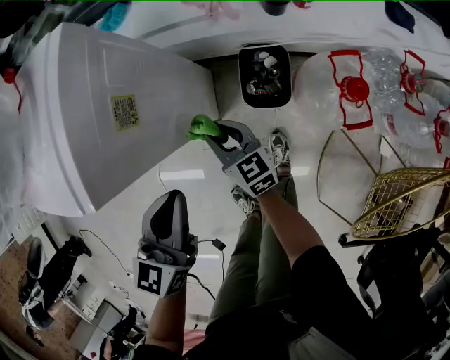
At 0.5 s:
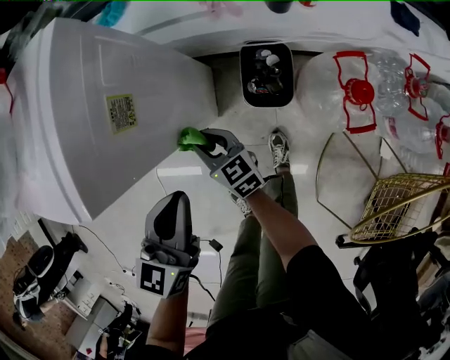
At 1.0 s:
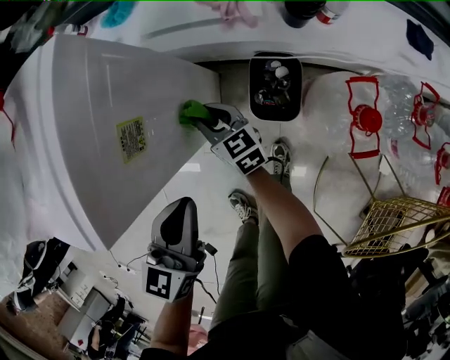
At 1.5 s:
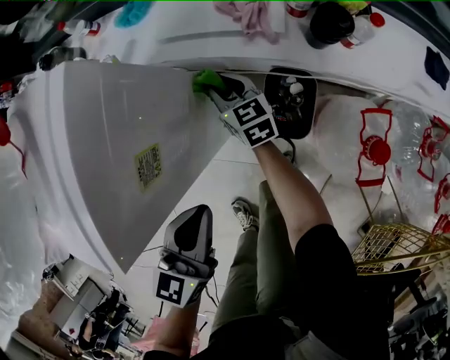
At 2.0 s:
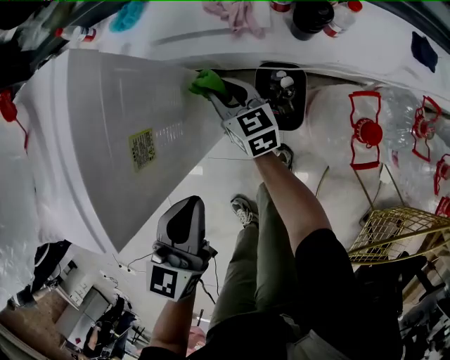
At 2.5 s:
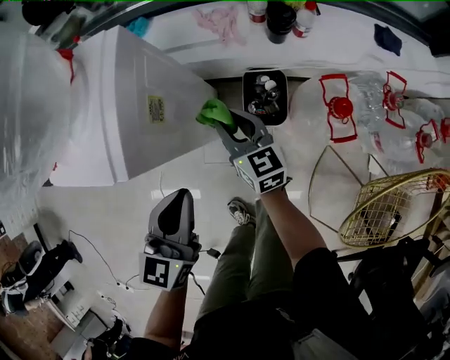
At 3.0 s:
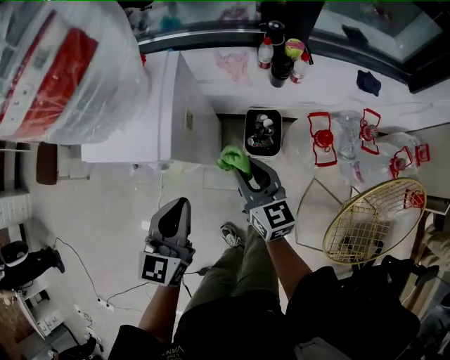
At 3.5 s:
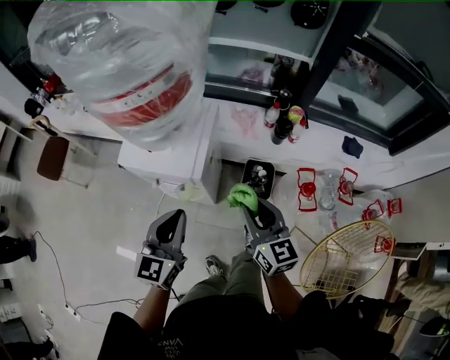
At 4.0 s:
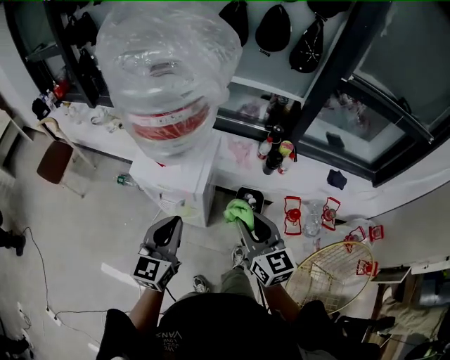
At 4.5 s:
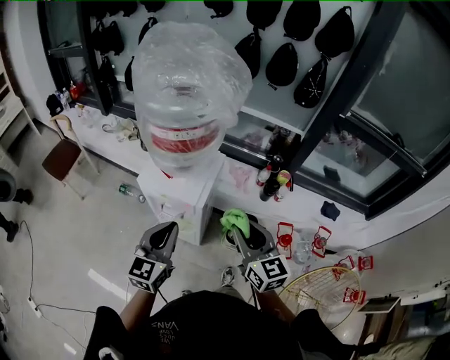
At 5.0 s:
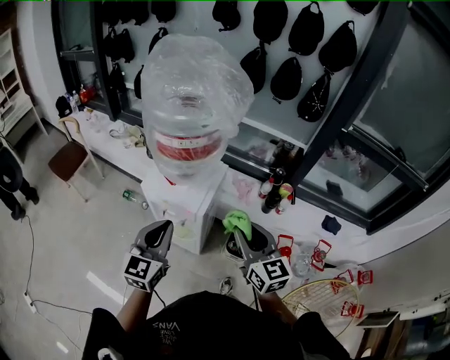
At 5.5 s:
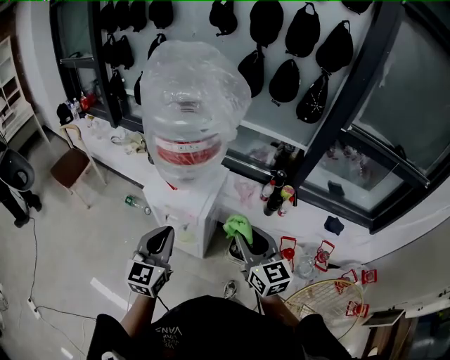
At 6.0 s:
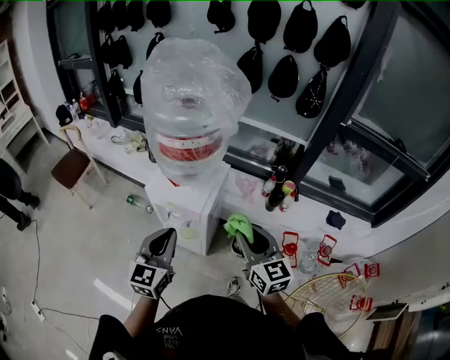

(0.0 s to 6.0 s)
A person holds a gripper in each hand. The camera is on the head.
0.0 s - 2.0 s: The left gripper is displaced forward by about 5 cm. Meanwhile the right gripper heads forward, covering about 15 cm.
2.0 s - 4.0 s: The left gripper travels upward, to the left and backward by some 30 cm, and rotates approximately 20 degrees; the right gripper is displaced upward and backward by about 50 cm.
4.0 s - 6.0 s: The right gripper is displaced upward by about 5 cm; the left gripper changes place by approximately 5 cm.

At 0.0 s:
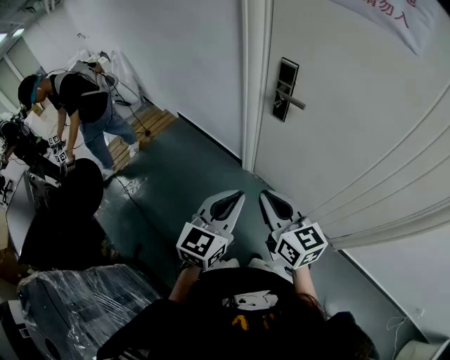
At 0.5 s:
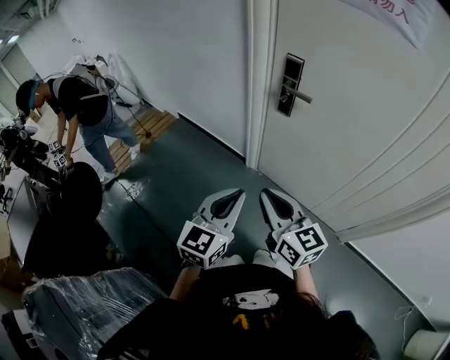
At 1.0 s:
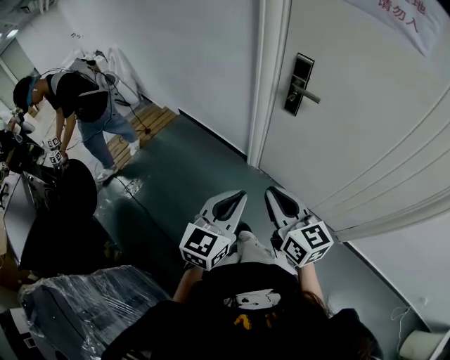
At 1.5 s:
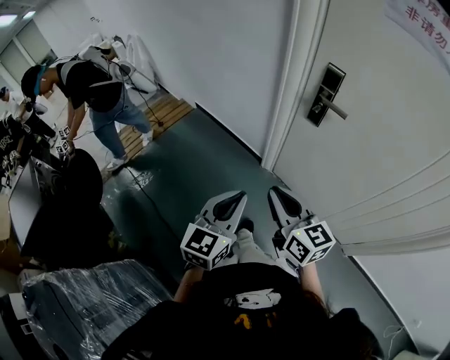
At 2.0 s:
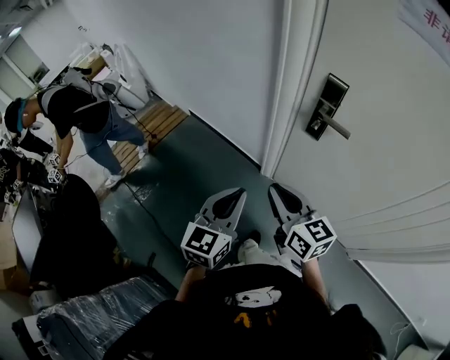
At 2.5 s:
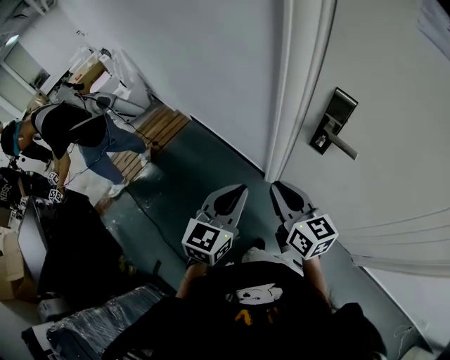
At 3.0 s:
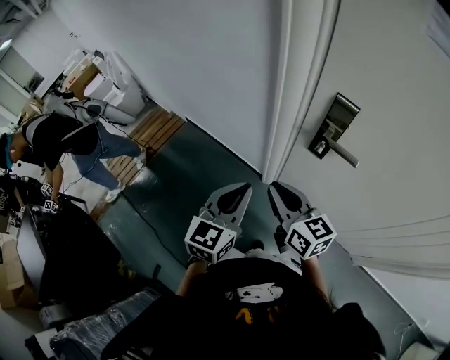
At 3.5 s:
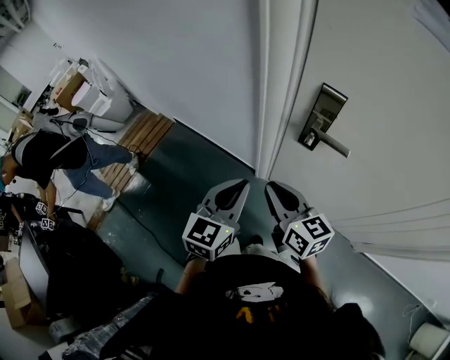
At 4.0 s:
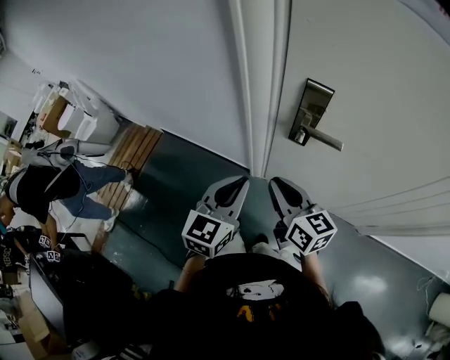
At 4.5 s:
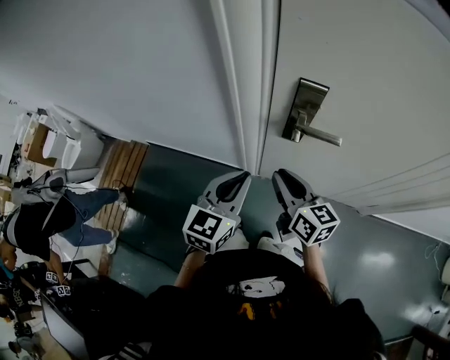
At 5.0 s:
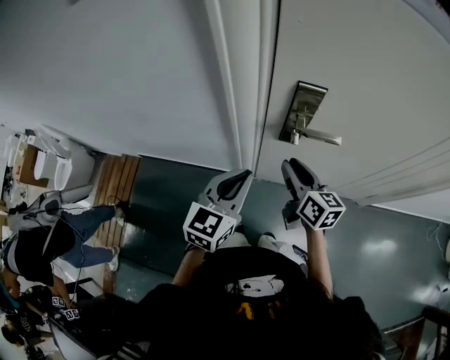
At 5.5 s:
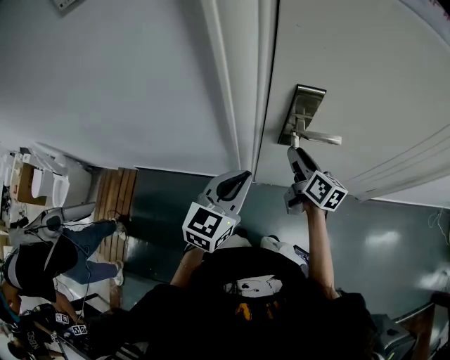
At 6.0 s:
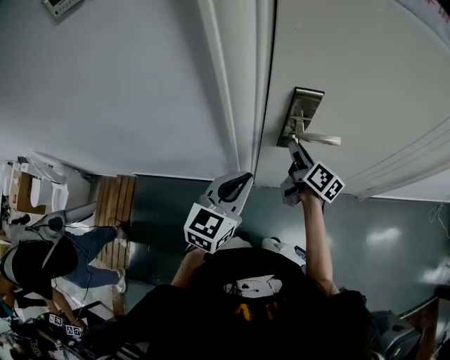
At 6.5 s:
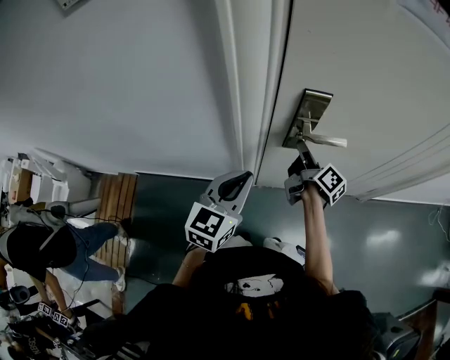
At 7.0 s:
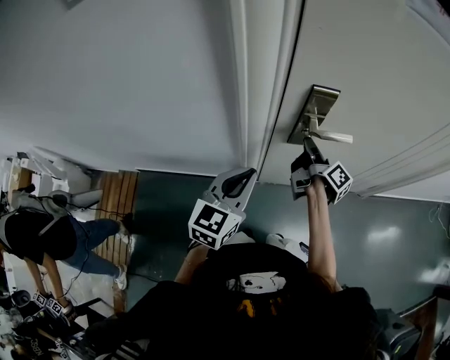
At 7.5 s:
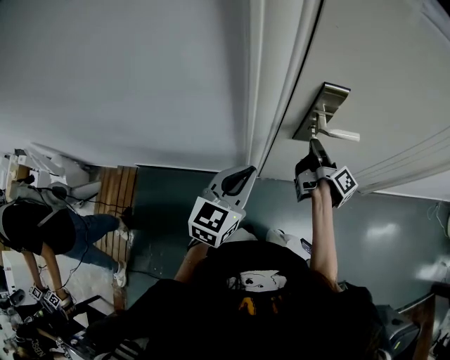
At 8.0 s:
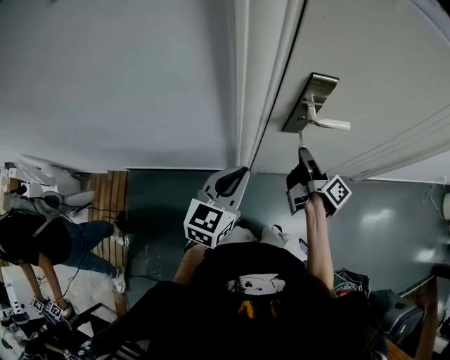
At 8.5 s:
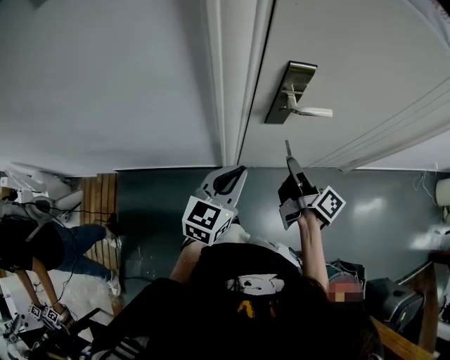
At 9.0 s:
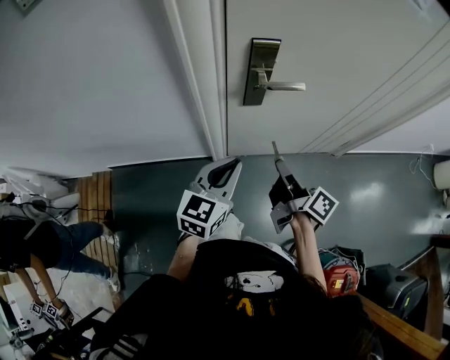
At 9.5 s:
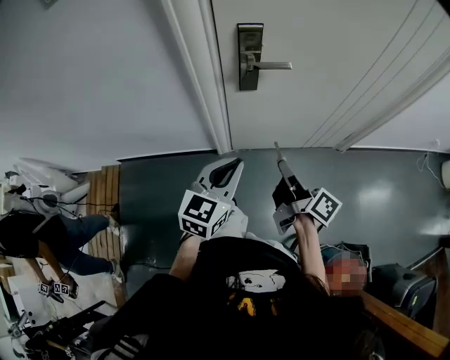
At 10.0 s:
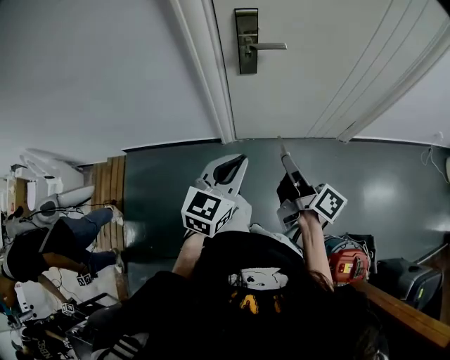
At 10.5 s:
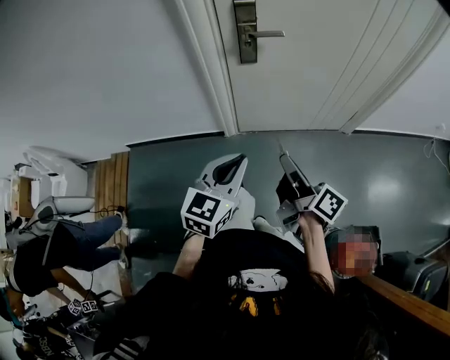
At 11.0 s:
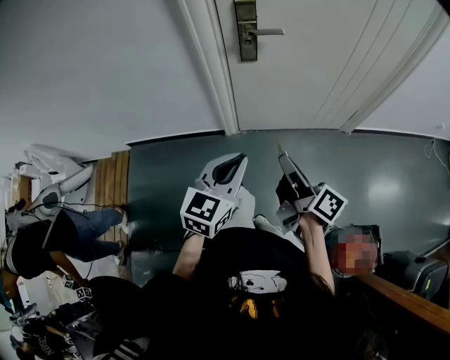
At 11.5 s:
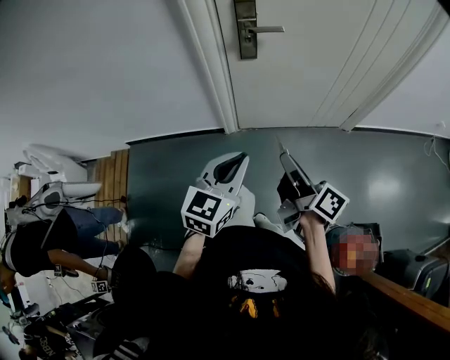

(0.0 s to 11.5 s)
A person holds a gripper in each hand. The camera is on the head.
0.0 s - 2.0 s: Both grippers travel together forward and to the left, some 20 cm.
2.0 s - 4.0 s: The two grippers go approximately 15 cm forward.
4.0 s - 6.0 s: The right gripper shifts by about 20 cm, changes its angle by roughly 50 degrees, and opens, while the left gripper ends up roughly 10 cm from where it was, and turns by roughly 30 degrees.
6.0 s - 7.5 s: The left gripper is displaced to the left by some 5 cm; the right gripper rotates roughly 40 degrees.
7.5 s - 9.5 s: The left gripper goes roughly 20 cm backward and to the right; the right gripper shifts about 30 cm backward.
9.5 s - 11.5 s: The grippers both shift backward by approximately 15 cm.

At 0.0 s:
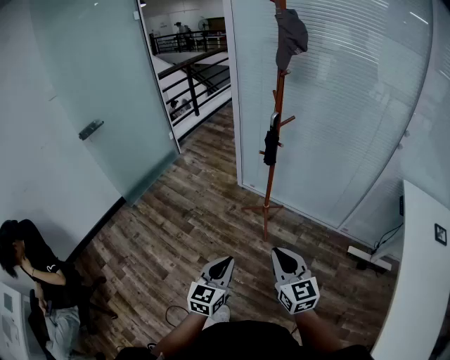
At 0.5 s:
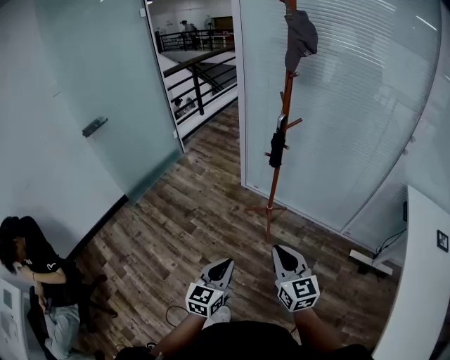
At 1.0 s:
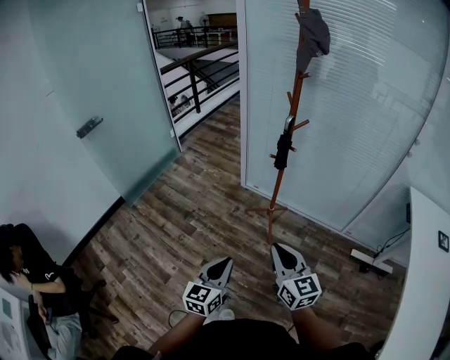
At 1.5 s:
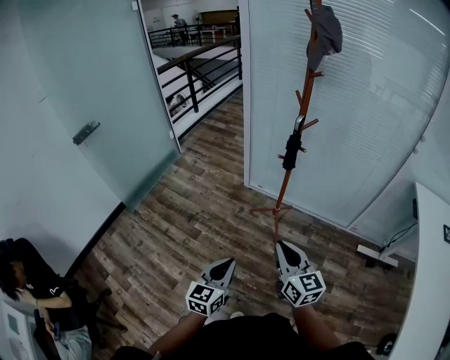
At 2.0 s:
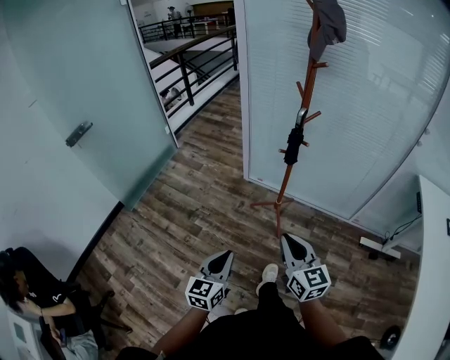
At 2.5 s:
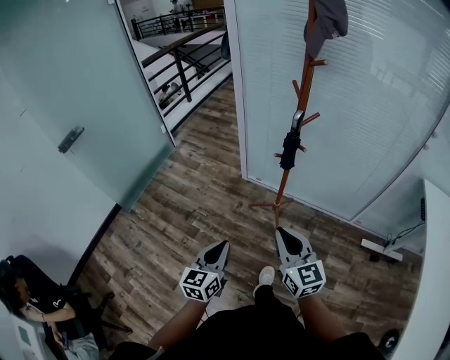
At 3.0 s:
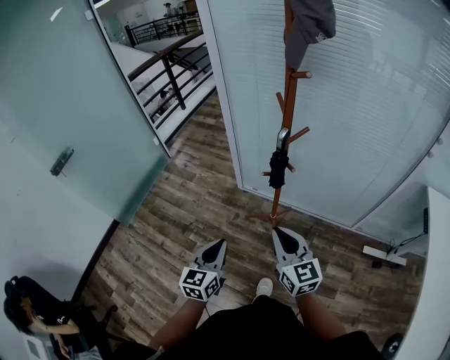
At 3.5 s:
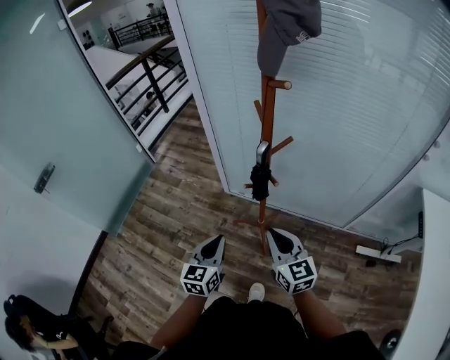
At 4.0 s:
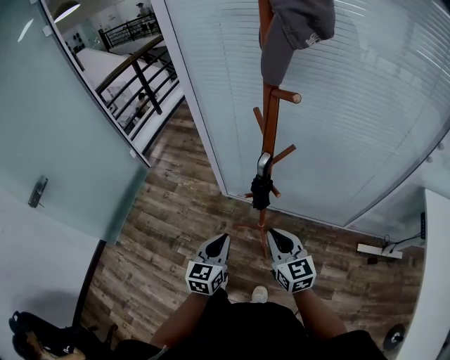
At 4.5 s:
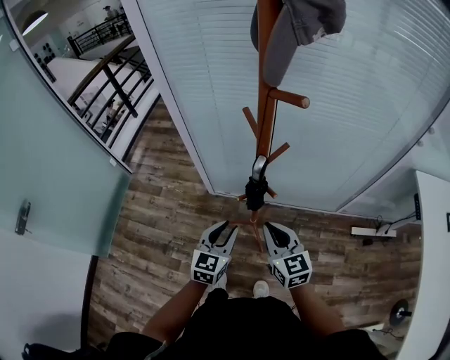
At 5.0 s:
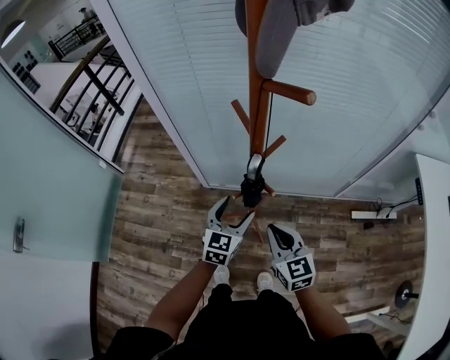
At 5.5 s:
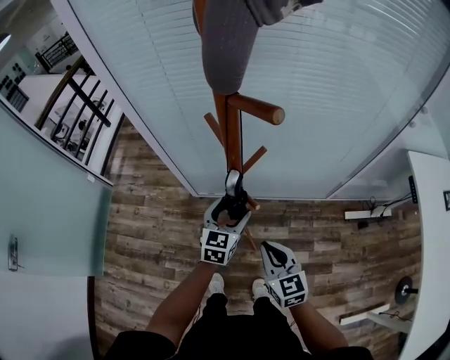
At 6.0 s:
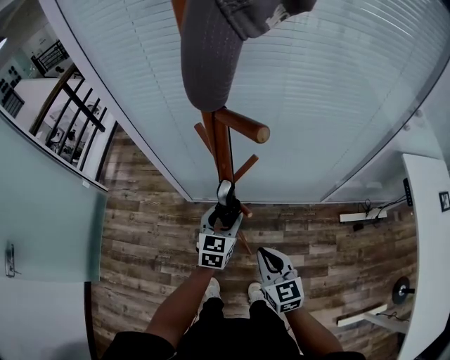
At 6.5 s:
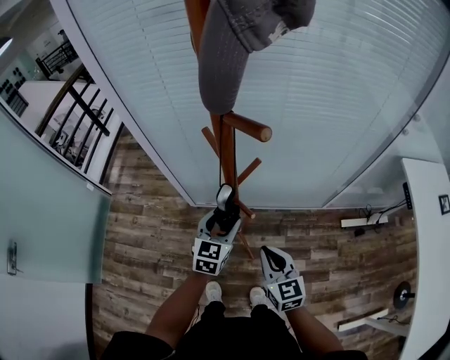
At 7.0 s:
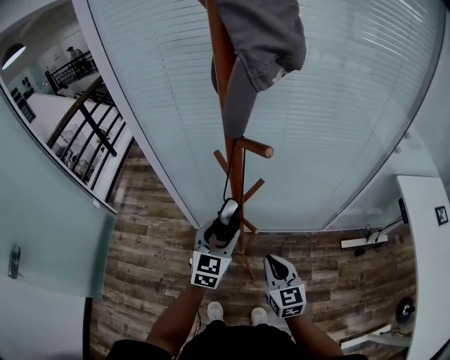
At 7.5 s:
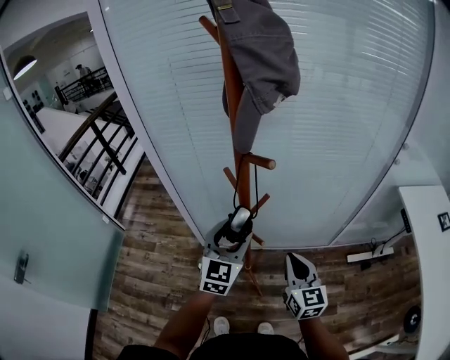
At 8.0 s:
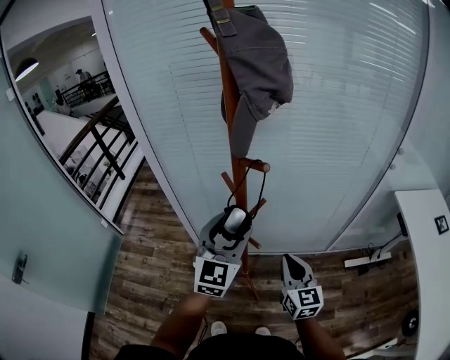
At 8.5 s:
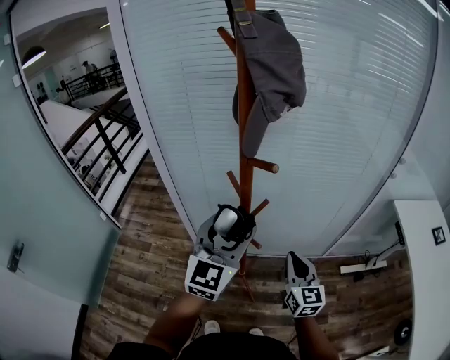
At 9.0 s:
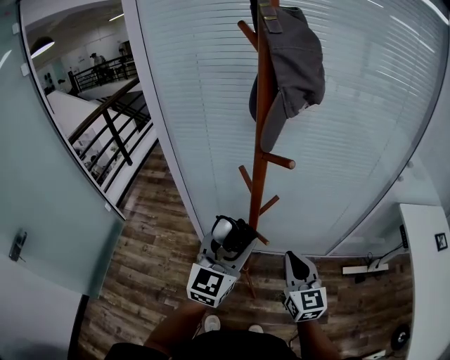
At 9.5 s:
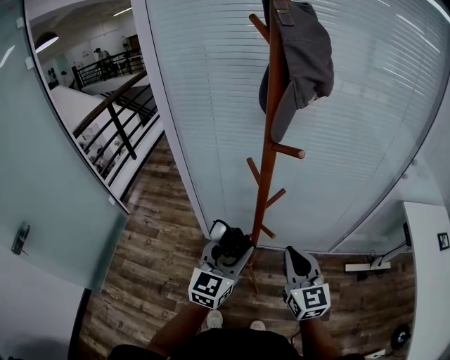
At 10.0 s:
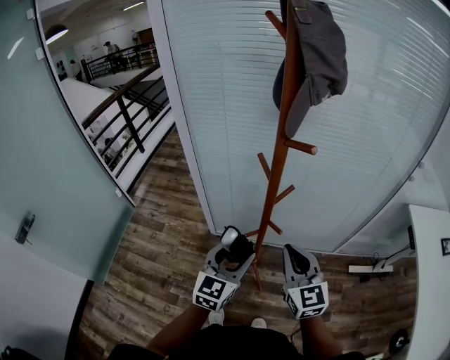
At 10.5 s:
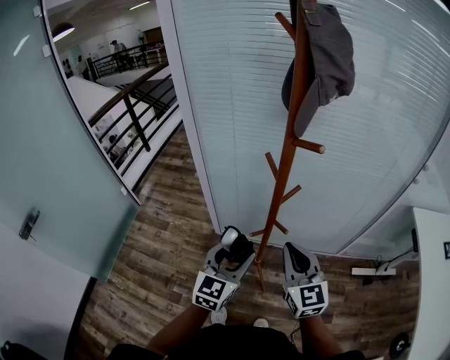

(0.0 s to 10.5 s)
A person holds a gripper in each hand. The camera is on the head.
0.0 s - 2.0 s: The left gripper is displaced to the left and forward by roughly 15 cm; the right gripper moves forward and to the left, approximately 15 cm.
2.0 s - 4.0 s: The two grippers go about 30 cm forward.
4.0 s - 6.5 s: The left gripper is displaced forward and to the right by approximately 20 cm, changes its angle by about 20 degrees, and opens its fingers, while the right gripper ends up about 5 cm from where it was.
6.5 s - 8.5 s: The right gripper is displaced upward and to the right by some 10 cm; the left gripper heads upward, covering roughly 25 cm, and swivels approximately 30 degrees.
8.5 s - 10.5 s: The left gripper heads downward, backward and to the left, covering roughly 20 cm. Meanwhile the right gripper goes approximately 15 cm to the left and upward.
